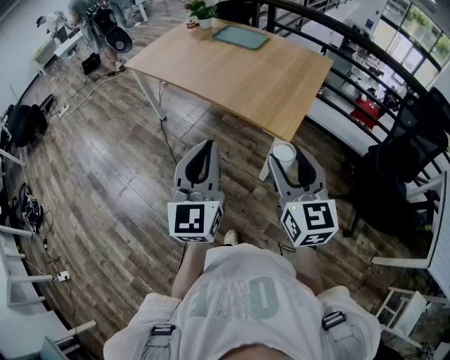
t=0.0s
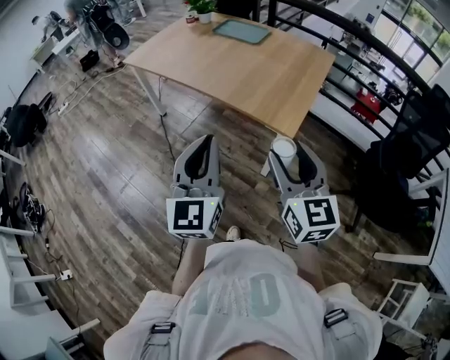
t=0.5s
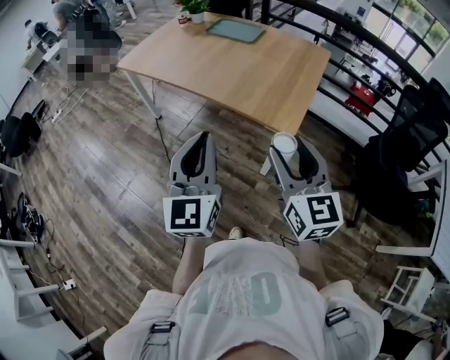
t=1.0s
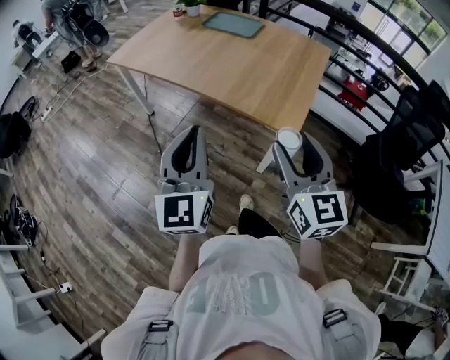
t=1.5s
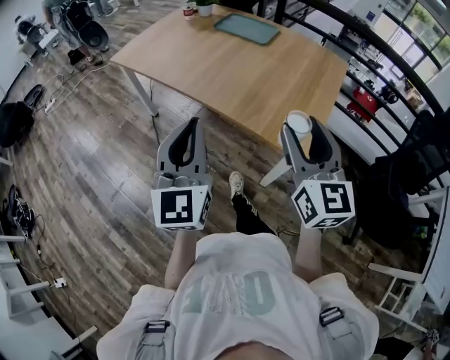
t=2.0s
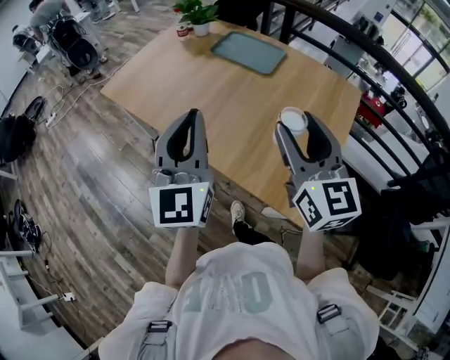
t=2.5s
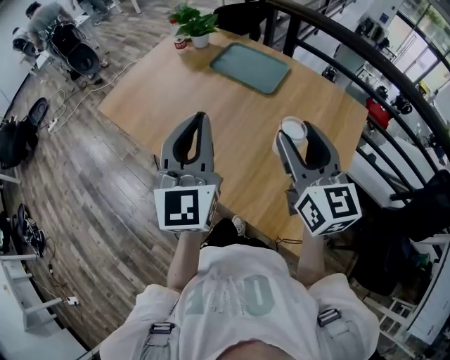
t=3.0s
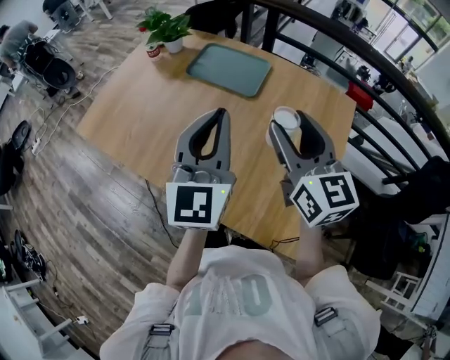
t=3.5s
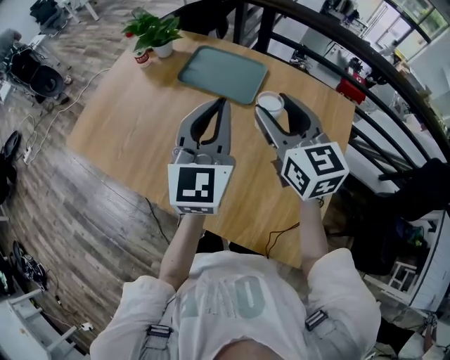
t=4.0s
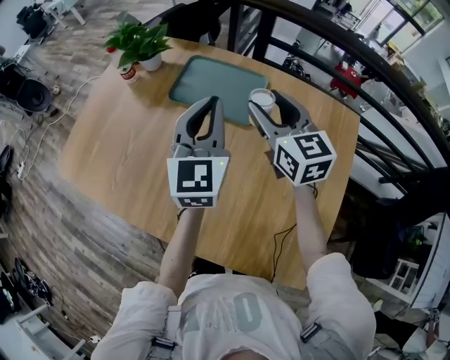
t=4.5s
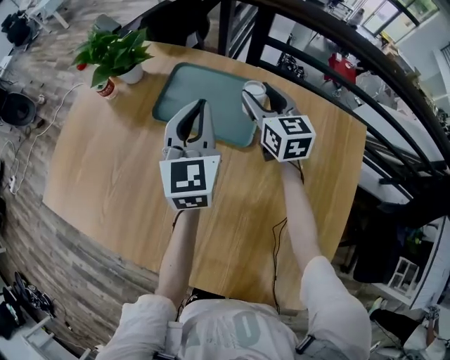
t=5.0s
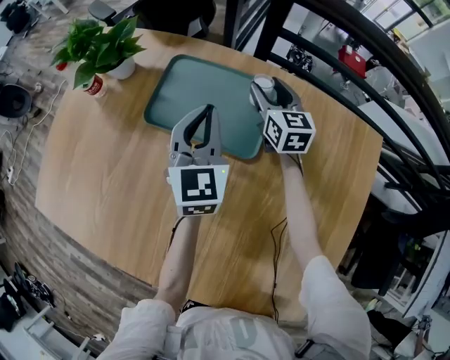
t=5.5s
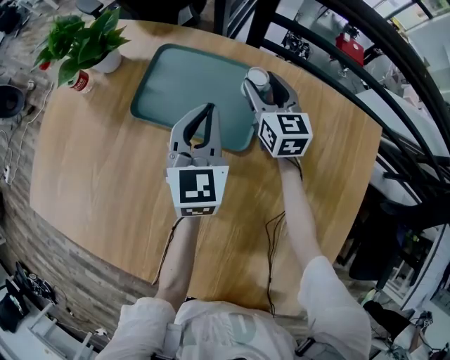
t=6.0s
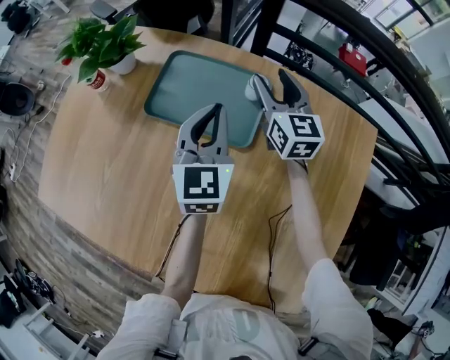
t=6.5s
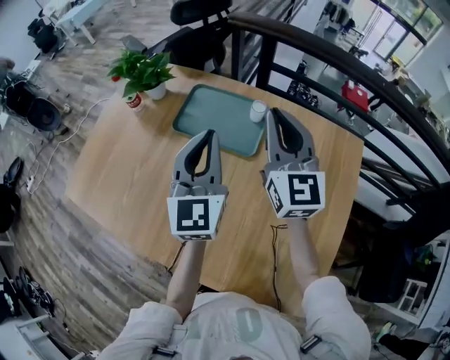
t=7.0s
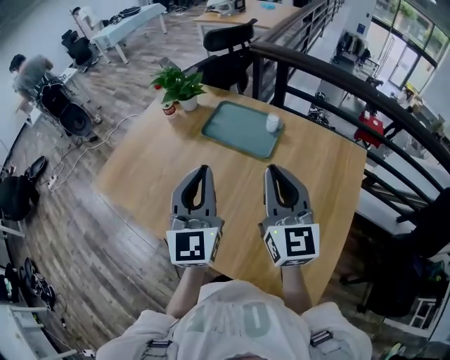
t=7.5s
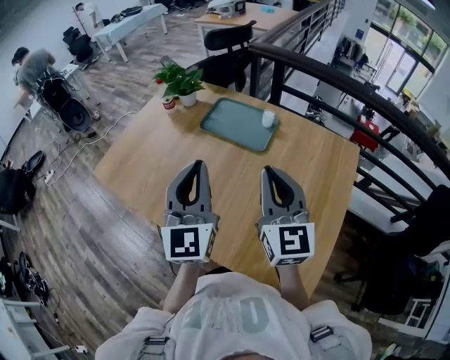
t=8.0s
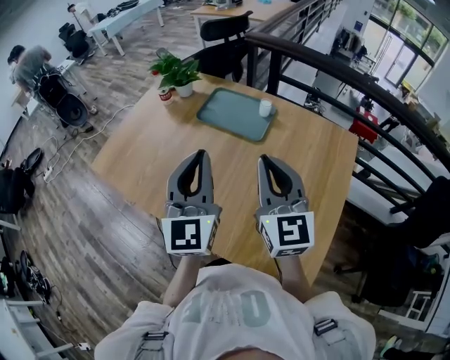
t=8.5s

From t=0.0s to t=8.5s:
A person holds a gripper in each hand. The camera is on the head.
From t=0.0s to t=2.0s: The right gripper is displaced forward by some 20 cm. The left gripper heads forward and to the left, covering approximately 20 cm.
From t=2.0s to t=4.0s: The pair of grippers is taken forward, about 50 cm.
From t=4.0s to t=6.5s: Both grippers travel together forward and downward, roughly 35 cm.
From t=6.5s to t=8.5s: Both grippers move backward and upward, roughly 40 cm. The left gripper rotates approximately 20 degrees, while the right gripper closes up.

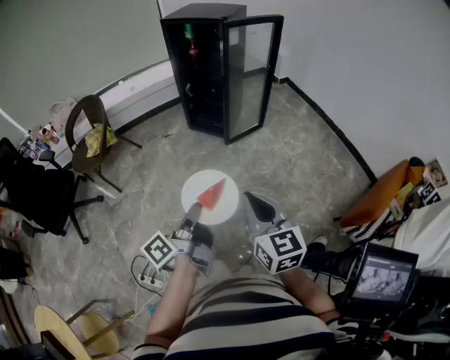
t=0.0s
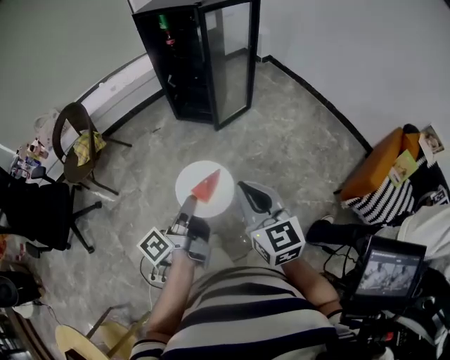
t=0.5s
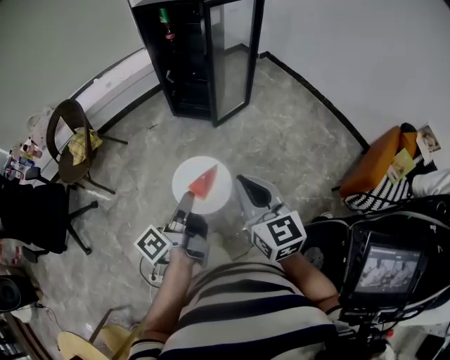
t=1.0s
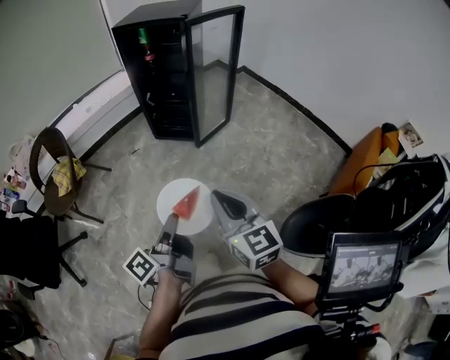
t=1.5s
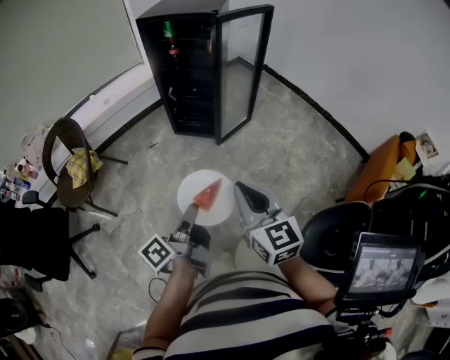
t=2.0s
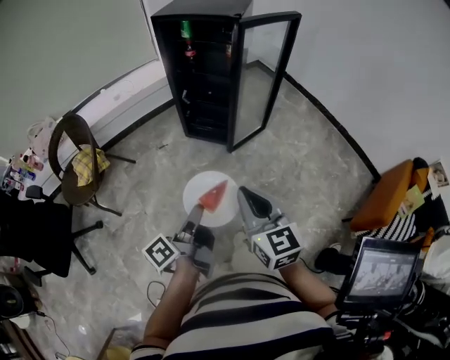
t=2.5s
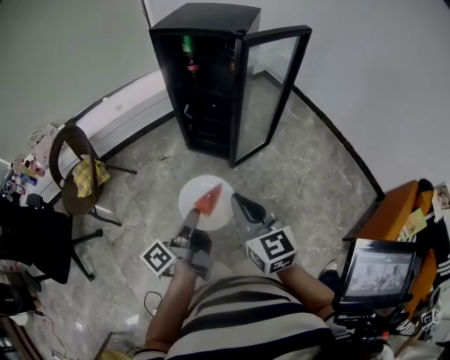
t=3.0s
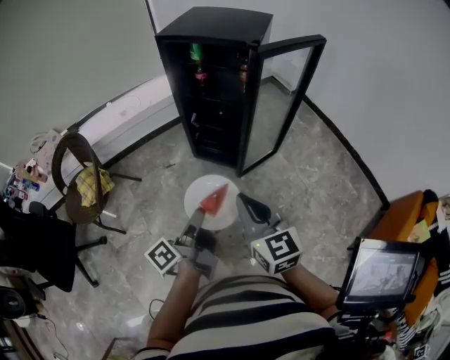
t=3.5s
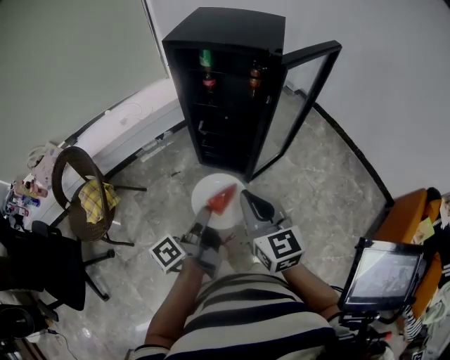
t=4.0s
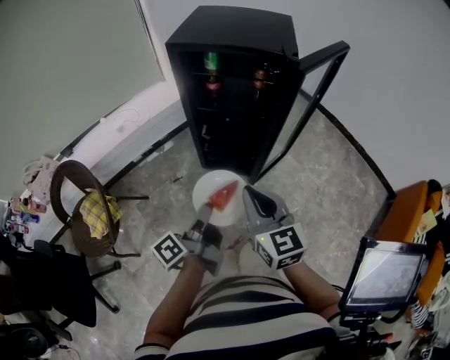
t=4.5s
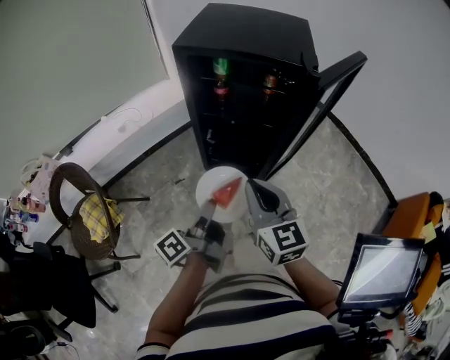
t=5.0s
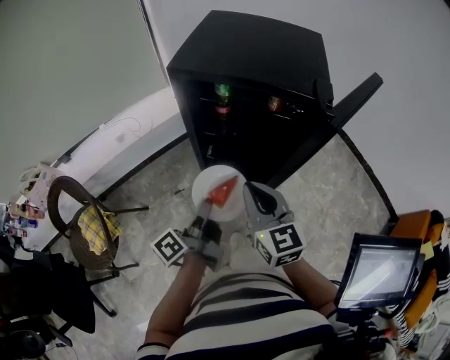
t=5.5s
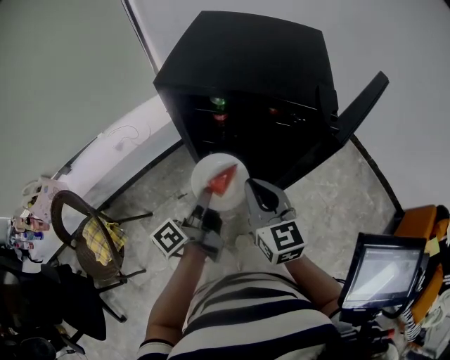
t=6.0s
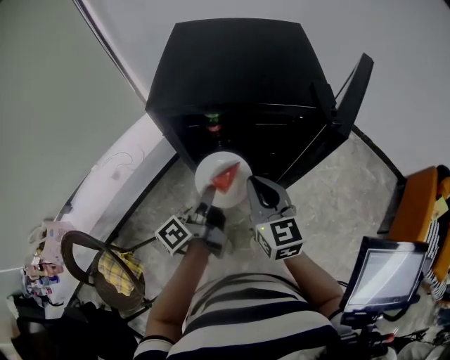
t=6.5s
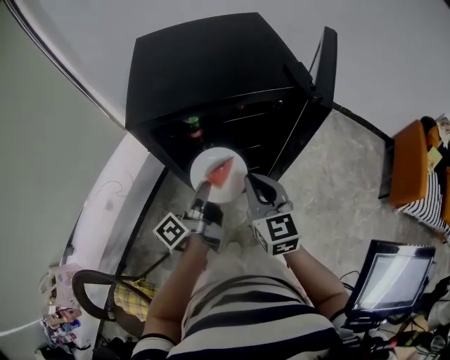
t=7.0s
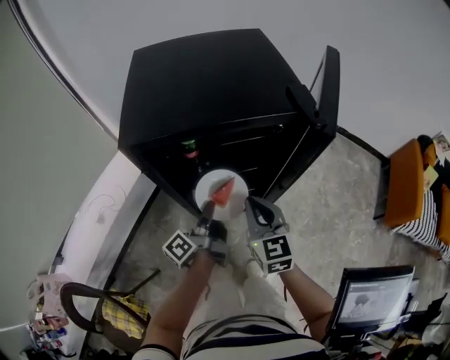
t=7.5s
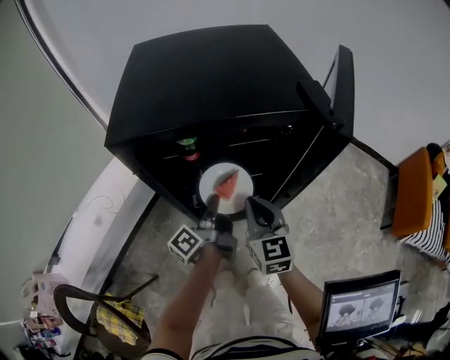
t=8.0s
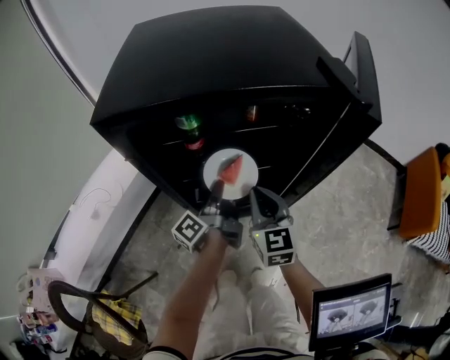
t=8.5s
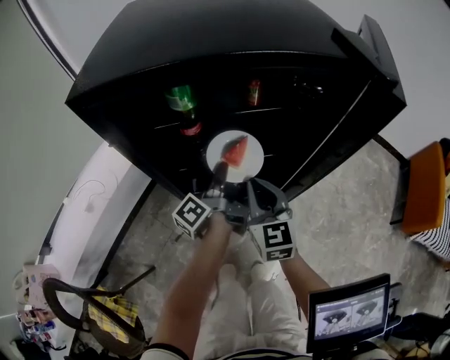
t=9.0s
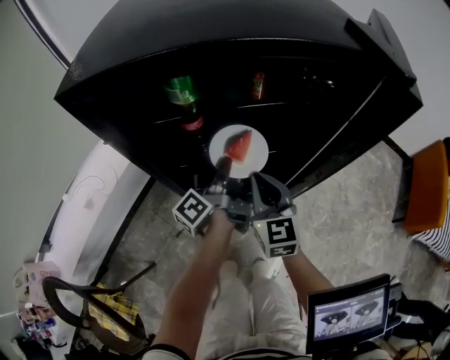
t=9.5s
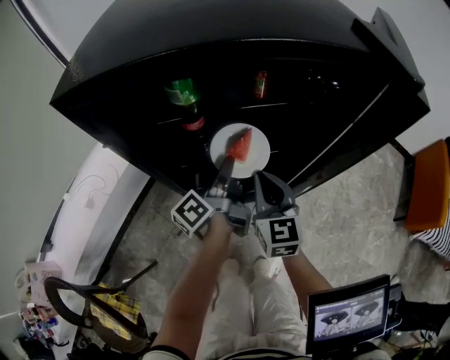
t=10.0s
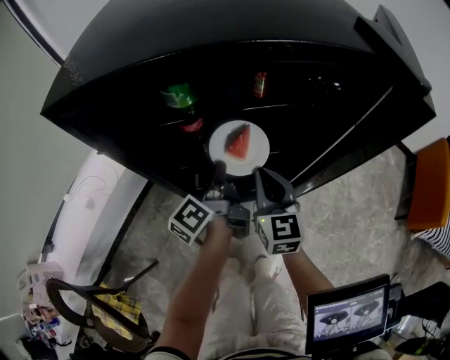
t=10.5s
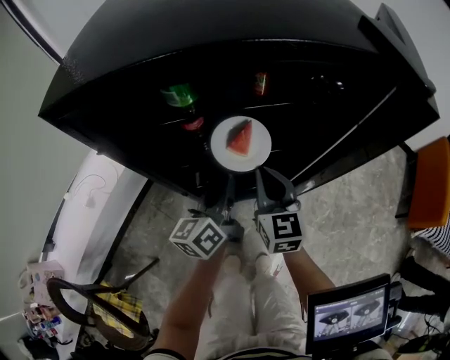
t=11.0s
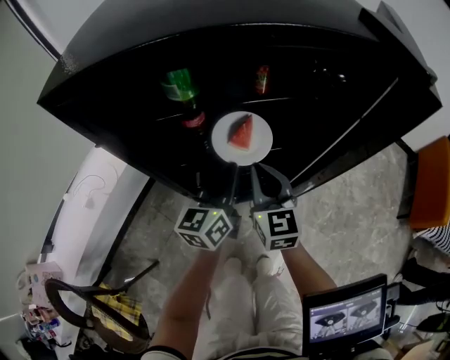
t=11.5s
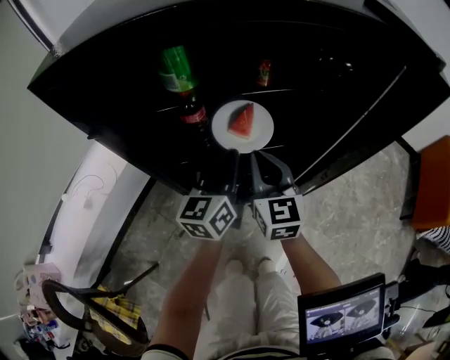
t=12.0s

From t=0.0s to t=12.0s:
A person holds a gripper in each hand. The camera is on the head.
From t=0.0s to t=2.0s: The right gripper goes about 15 cm to the left and forward; the left gripper is displaced forward and to the left by approximately 15 cm.
From t=2.0s to t=4.0s: Both grippers move forward, roughly 30 cm.
From t=4.0s to t=6.0s: The two grippers go about 25 cm forward.
From t=6.0s to t=8.0s: The left gripper travels forward and downward by approximately 15 cm. Meanwhile the right gripper goes roughly 15 cm downward and forward, and turns by roughly 30 degrees.
From t=8.0s to t=10.0s: The left gripper is displaced forward and downward by approximately 10 cm, and opens its fingers; the right gripper moves downward, about 10 cm.
From t=10.0s to t=12.0s: The left gripper rotates around the line of its fingers by approximately 60 degrees, clockwise from behind, and closes.

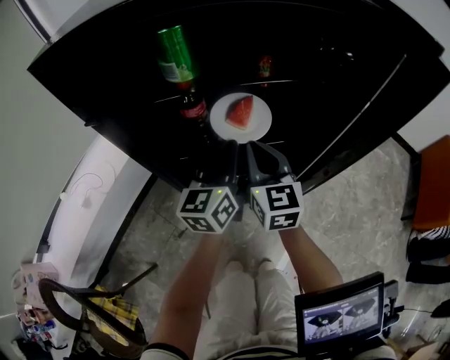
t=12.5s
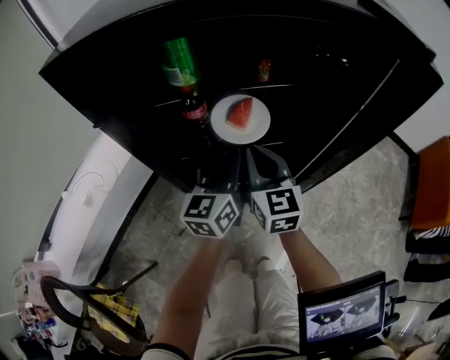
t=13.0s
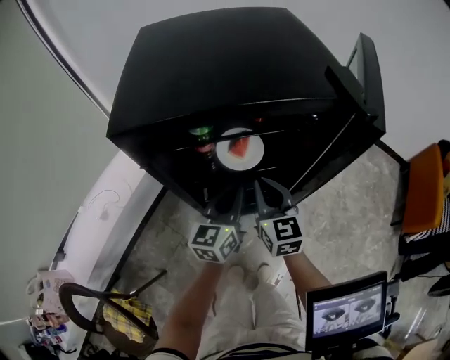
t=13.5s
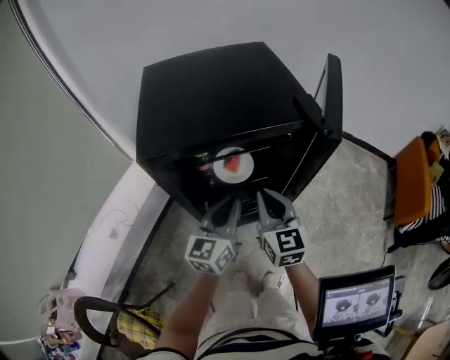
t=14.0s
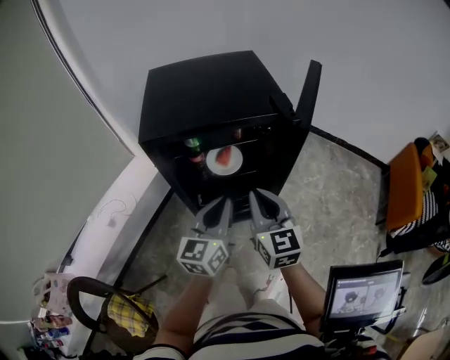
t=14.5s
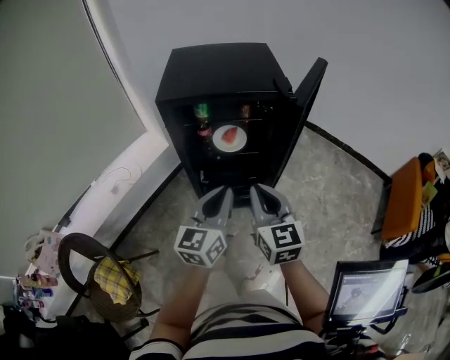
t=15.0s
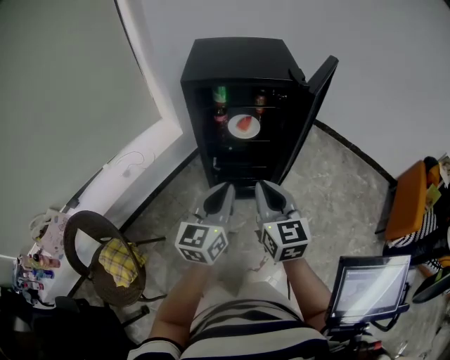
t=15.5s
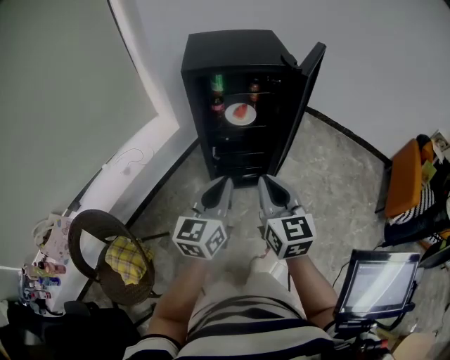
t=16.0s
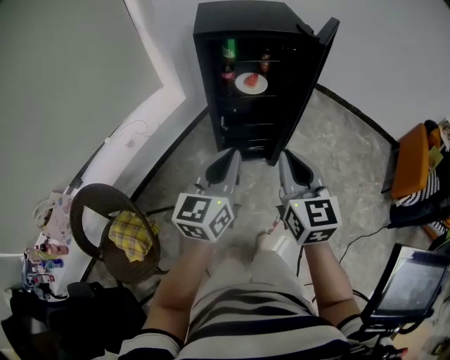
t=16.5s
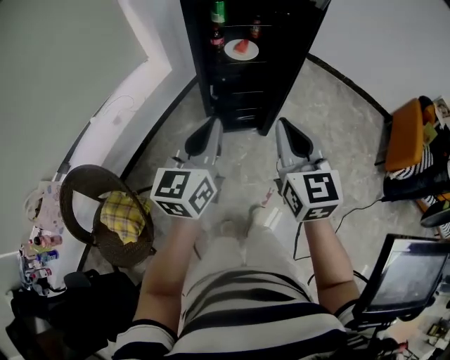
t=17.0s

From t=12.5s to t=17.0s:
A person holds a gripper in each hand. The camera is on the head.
From t=12.5s to t=14.5s: Both grippers move upward and backward, approximately 30 cm.
From t=14.5s to t=17.0s: Both grippers move backward, roughly 25 cm.

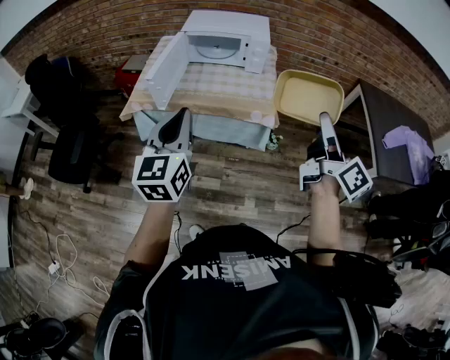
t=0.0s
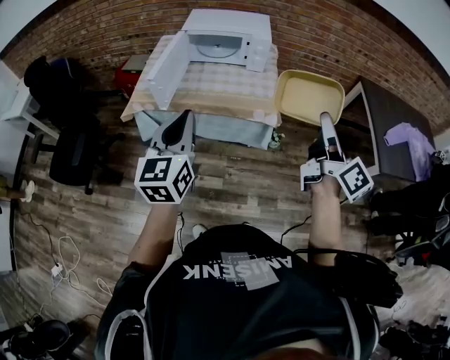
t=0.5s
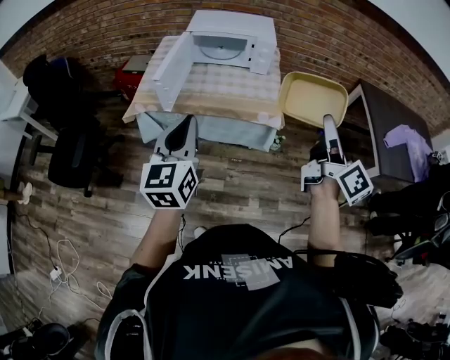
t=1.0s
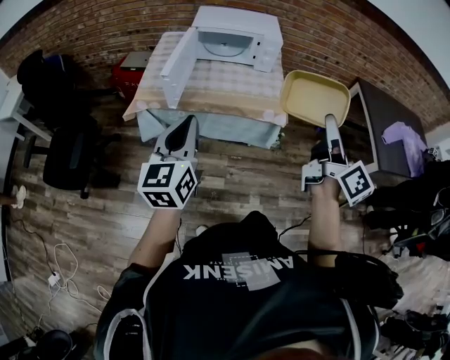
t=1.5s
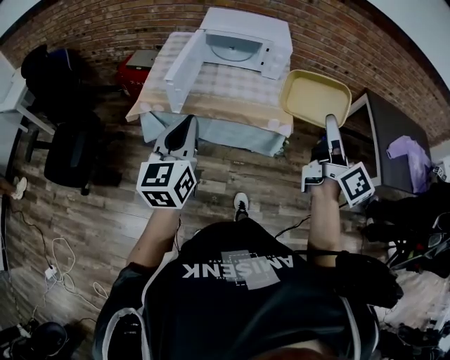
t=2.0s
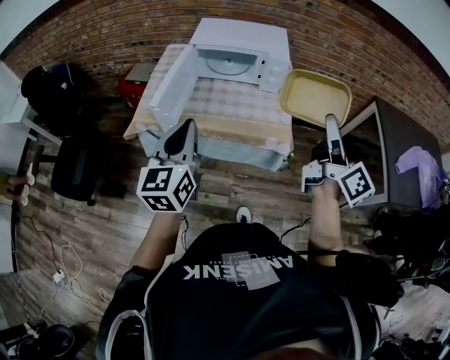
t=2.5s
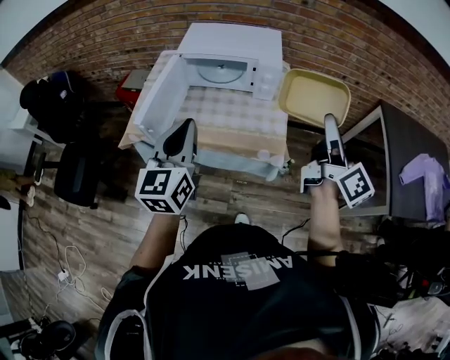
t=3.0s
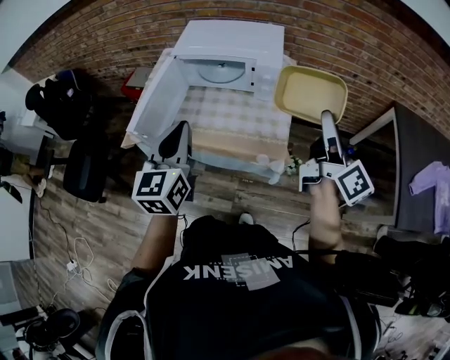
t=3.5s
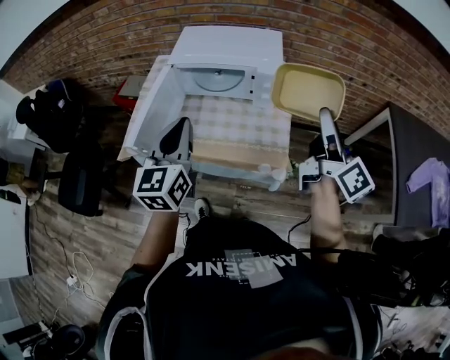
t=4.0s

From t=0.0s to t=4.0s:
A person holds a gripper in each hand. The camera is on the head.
From t=0.0s to t=2.0s: Both grippers travel together to the left, about 10 cm.
From t=2.0s to t=4.0s: Both grippers travel together forward and to the right, roughly 30 cm.
